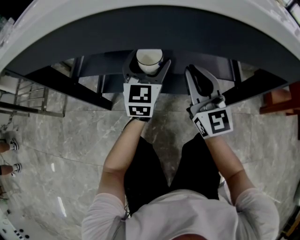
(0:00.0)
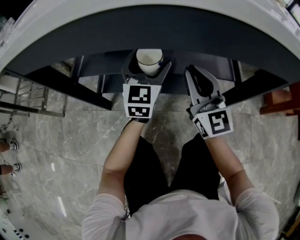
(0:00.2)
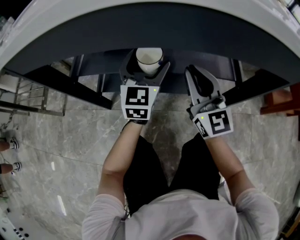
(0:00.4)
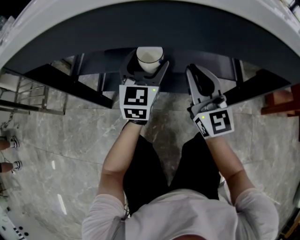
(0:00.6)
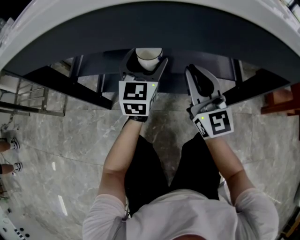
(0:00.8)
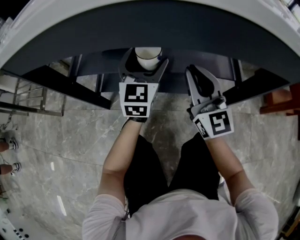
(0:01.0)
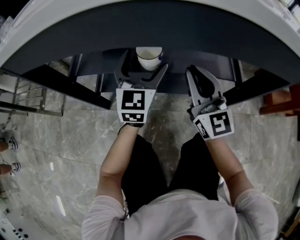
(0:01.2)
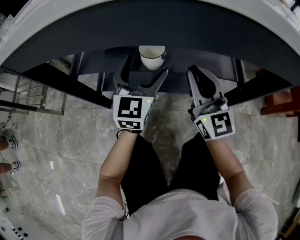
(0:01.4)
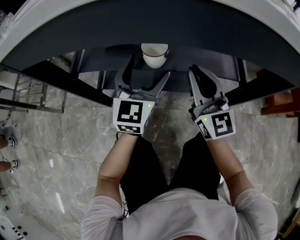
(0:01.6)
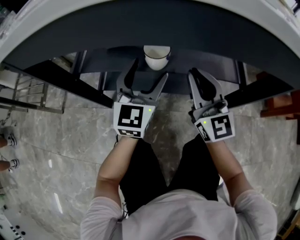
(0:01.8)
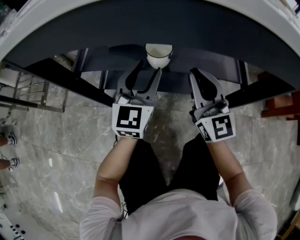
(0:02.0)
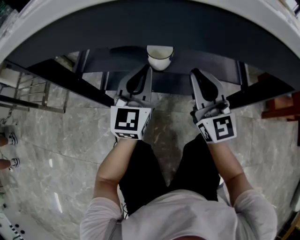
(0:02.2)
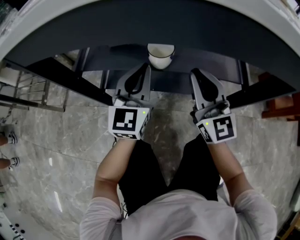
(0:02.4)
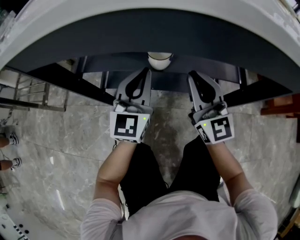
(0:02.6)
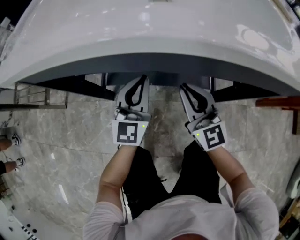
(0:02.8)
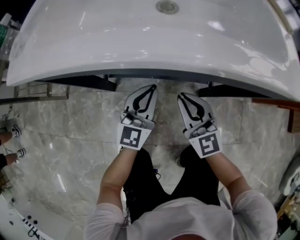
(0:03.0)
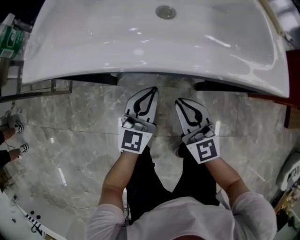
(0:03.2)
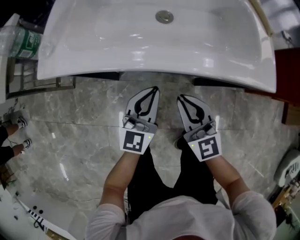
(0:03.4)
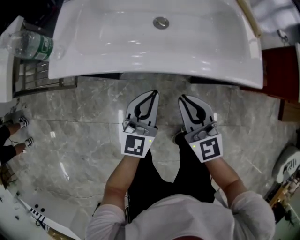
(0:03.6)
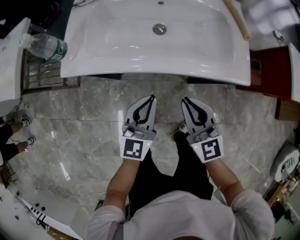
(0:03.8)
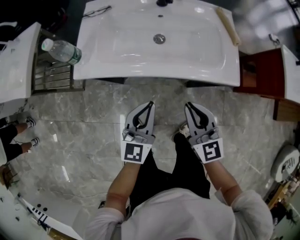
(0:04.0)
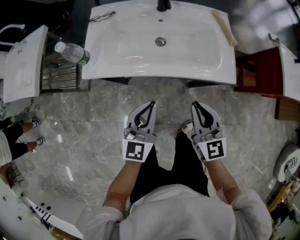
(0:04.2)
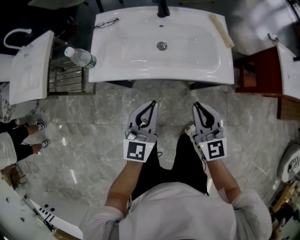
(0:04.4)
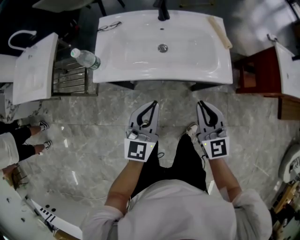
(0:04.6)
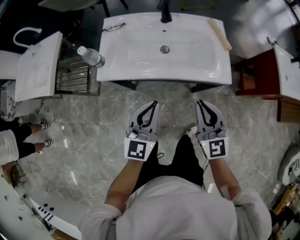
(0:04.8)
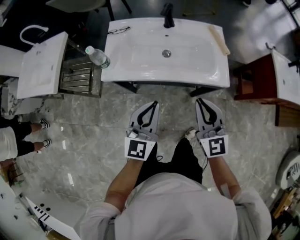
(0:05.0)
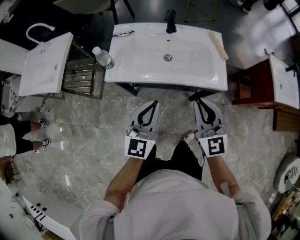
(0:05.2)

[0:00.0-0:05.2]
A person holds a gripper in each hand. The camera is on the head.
0:00.0 to 0:01.8: The left gripper moves backward, approximately 5 cm.
0:01.8 to 0:03.4: The two grippers go about 20 cm upward and backward. The left gripper closes up.
0:03.4 to 0:05.2: The two grippers go some 35 cm upward.

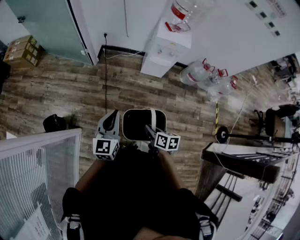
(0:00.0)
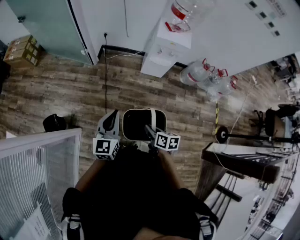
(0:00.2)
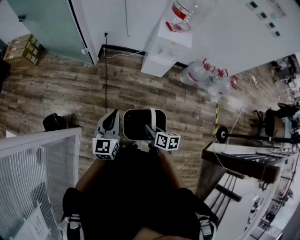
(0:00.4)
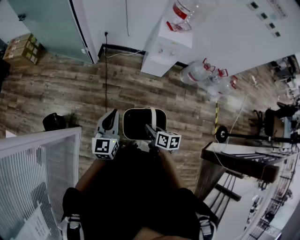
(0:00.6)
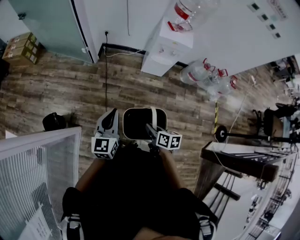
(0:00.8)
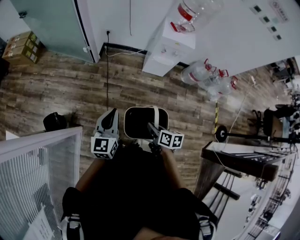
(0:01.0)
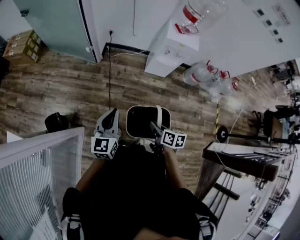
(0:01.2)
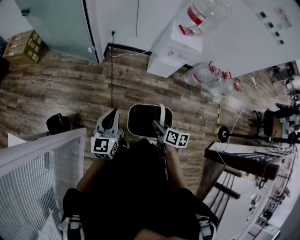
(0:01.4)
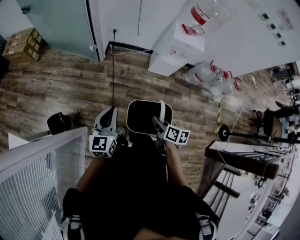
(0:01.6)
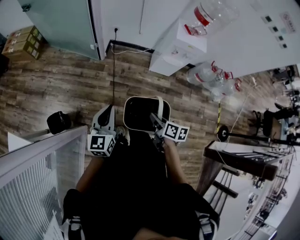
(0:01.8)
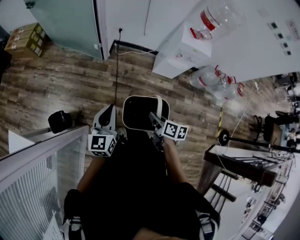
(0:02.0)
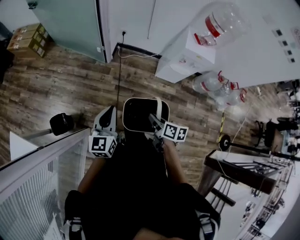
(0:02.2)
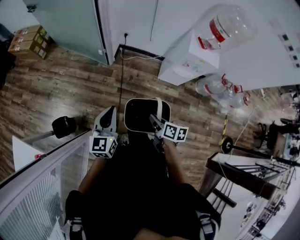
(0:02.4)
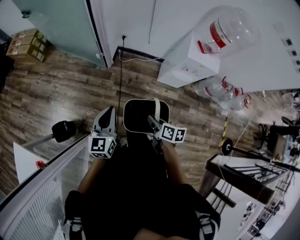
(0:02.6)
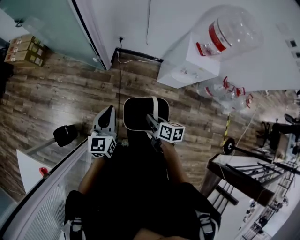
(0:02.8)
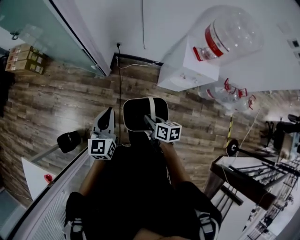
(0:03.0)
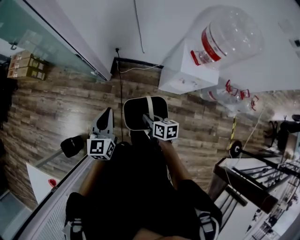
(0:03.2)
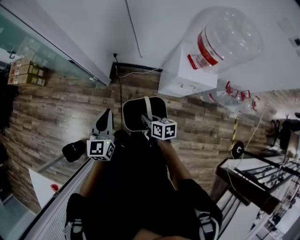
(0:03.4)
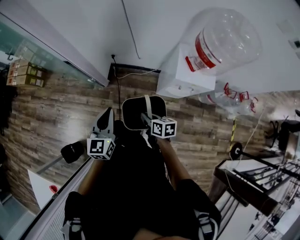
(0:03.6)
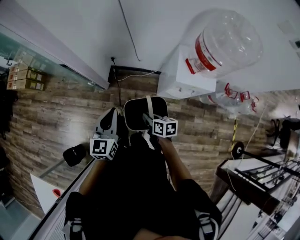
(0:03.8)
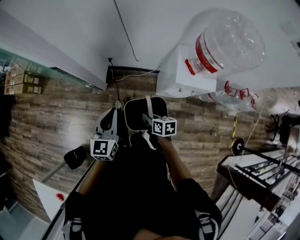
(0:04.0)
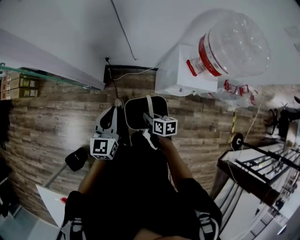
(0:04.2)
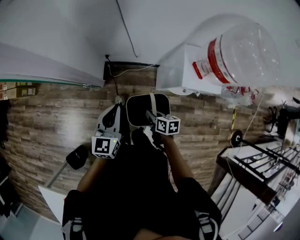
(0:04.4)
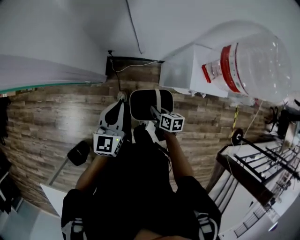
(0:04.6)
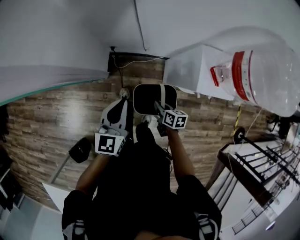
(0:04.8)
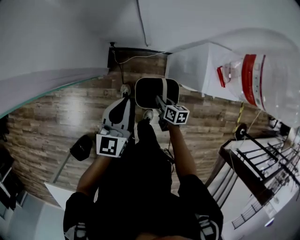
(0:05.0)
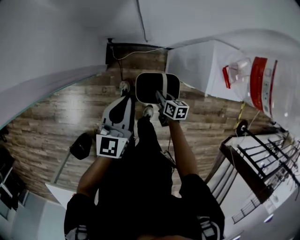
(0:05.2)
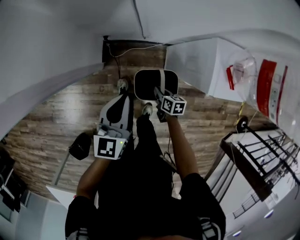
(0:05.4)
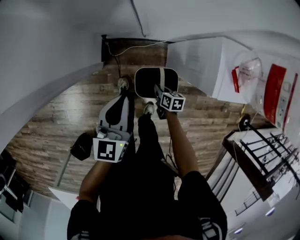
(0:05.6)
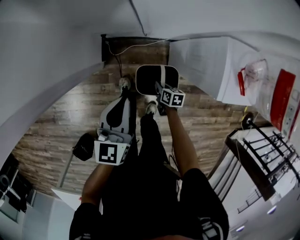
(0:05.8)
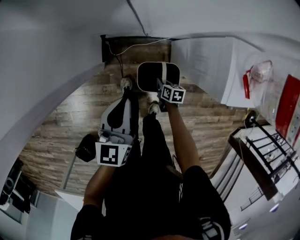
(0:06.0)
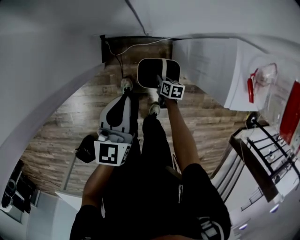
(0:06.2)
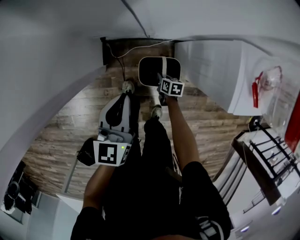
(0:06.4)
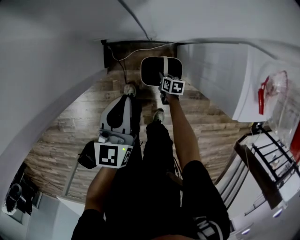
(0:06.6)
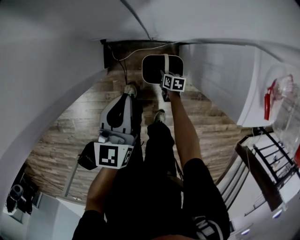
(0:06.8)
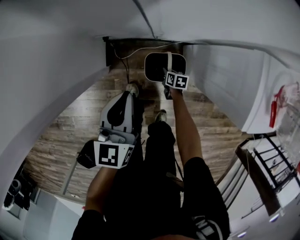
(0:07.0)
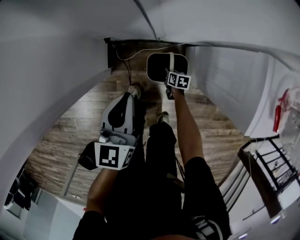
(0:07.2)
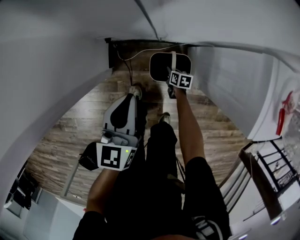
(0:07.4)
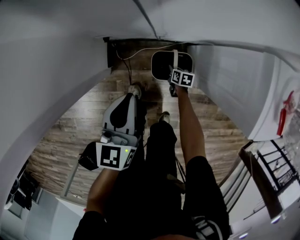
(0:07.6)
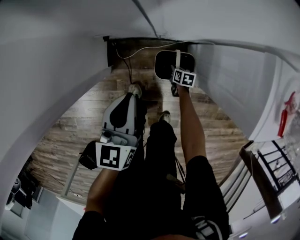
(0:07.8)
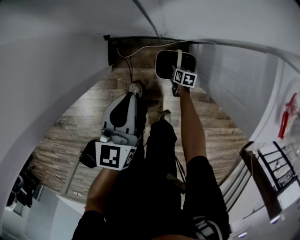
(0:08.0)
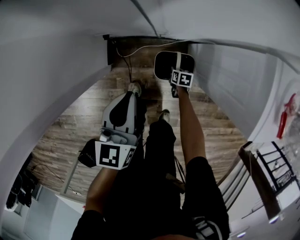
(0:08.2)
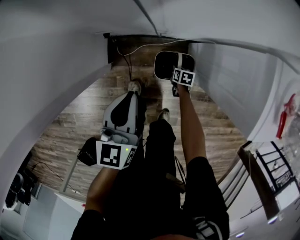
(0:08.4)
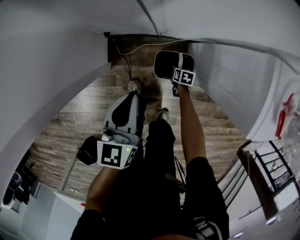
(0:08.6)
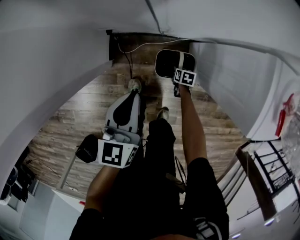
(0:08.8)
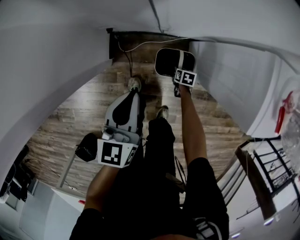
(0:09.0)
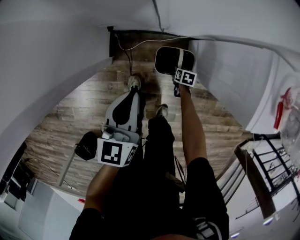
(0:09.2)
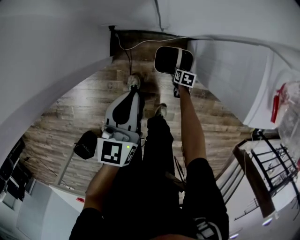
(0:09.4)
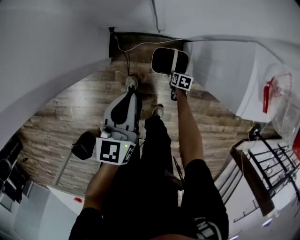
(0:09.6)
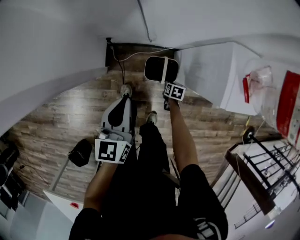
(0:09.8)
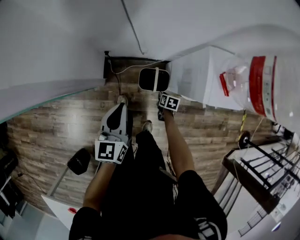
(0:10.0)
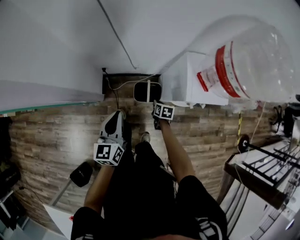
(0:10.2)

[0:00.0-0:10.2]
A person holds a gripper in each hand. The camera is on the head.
0:00.0 to 0:01.4: The right gripper heads to the left, covering about 5 cm, while the left gripper shifts roughly 10 cm to the left.
0:01.4 to 0:03.0: Both grippers travel together forward, some 30 cm.
0:03.0 to 0:04.4: The right gripper moves forward, to the right and downward, roughly 20 cm. The left gripper travels forward and to the right by about 25 cm.
0:04.4 to 0:05.8: The left gripper shifts roughly 20 cm forward and downward; the right gripper travels downward and forward by some 35 cm.
0:05.8 to 0:07.2: The left gripper travels downward and forward by some 15 cm; the right gripper is displaced downward and forward by some 25 cm.
0:07.2 to 0:08.8: The right gripper goes roughly 5 cm to the right.
0:08.8 to 0:10.2: The left gripper shifts some 25 cm upward and backward, while the right gripper is displaced upward by about 30 cm.

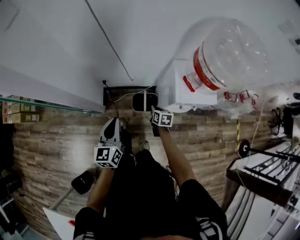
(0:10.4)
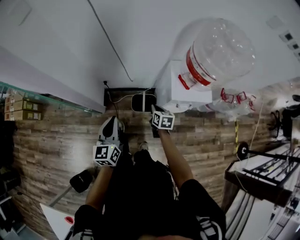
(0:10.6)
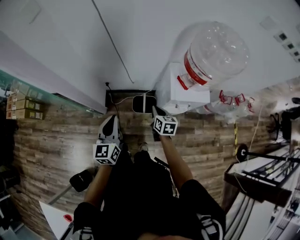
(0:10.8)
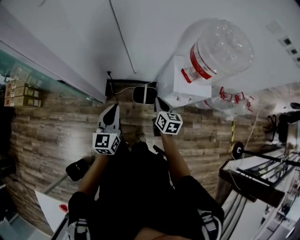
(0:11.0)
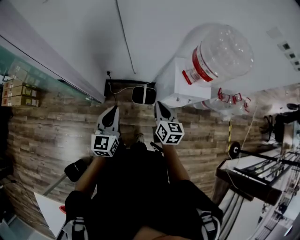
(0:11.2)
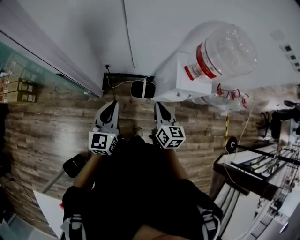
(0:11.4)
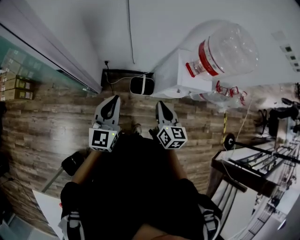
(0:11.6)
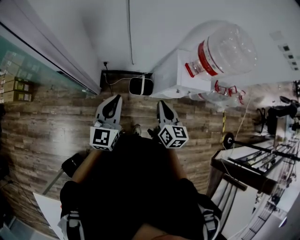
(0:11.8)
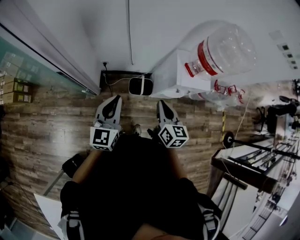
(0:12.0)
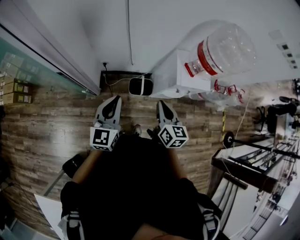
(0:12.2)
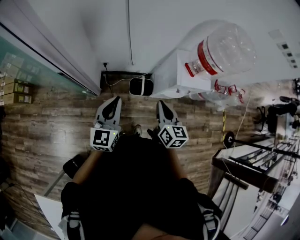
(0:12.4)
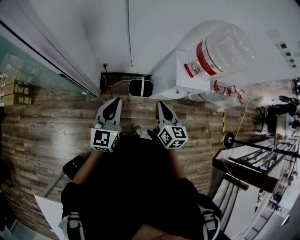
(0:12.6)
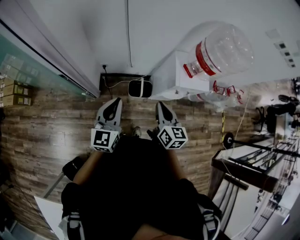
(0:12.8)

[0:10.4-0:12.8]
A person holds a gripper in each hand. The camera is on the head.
0:10.4 to 0:11.6: The left gripper moves upward, roughly 10 cm; the right gripper moves upward, some 30 cm, and swivels about 30 degrees.
0:11.6 to 0:12.8: The grippers stay close to where they were, moving slightly.

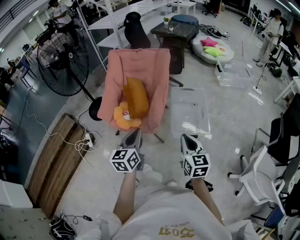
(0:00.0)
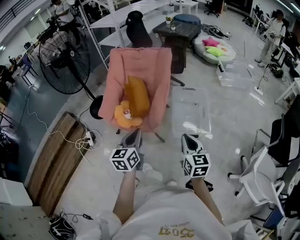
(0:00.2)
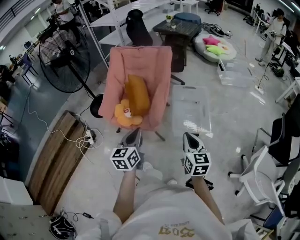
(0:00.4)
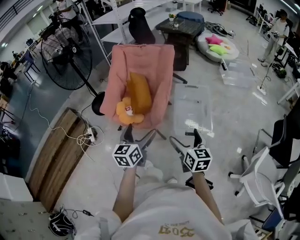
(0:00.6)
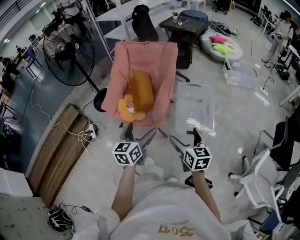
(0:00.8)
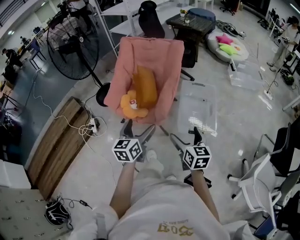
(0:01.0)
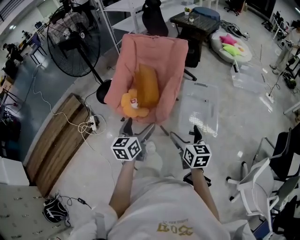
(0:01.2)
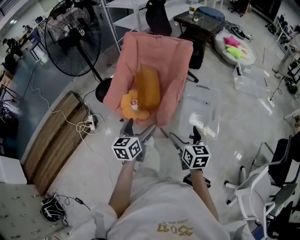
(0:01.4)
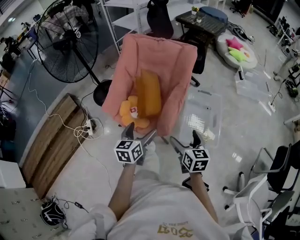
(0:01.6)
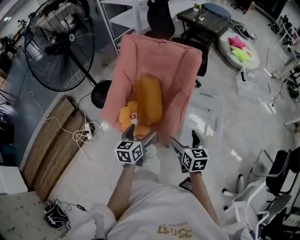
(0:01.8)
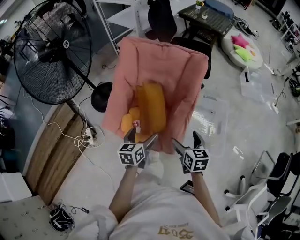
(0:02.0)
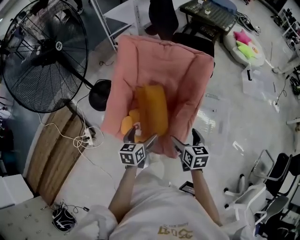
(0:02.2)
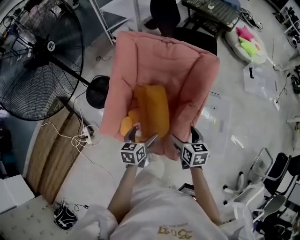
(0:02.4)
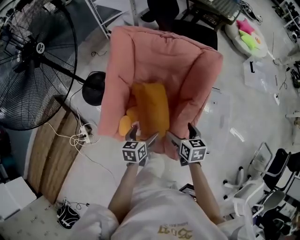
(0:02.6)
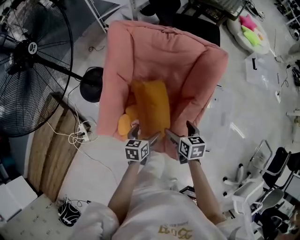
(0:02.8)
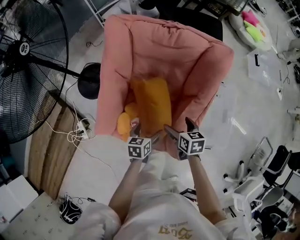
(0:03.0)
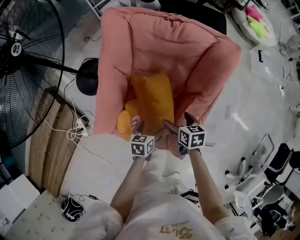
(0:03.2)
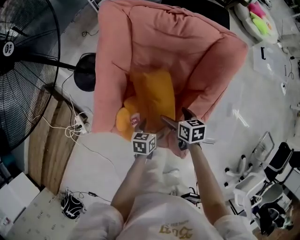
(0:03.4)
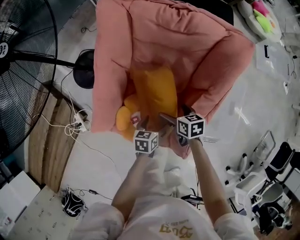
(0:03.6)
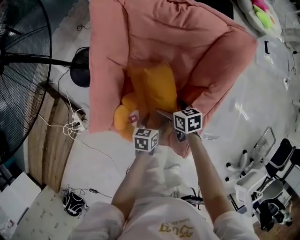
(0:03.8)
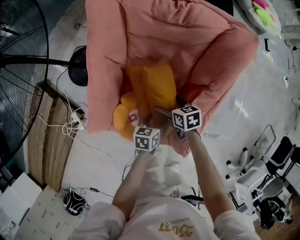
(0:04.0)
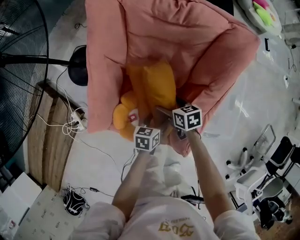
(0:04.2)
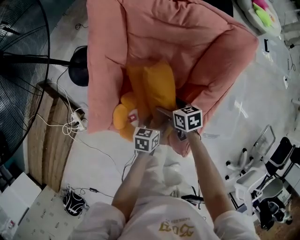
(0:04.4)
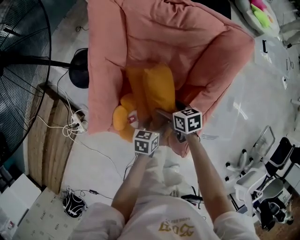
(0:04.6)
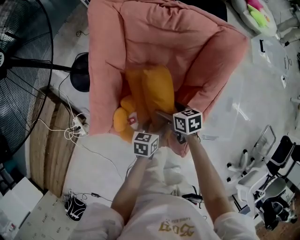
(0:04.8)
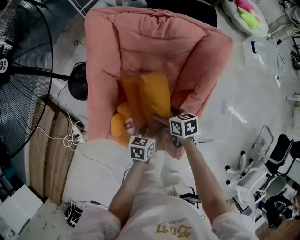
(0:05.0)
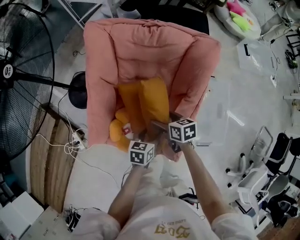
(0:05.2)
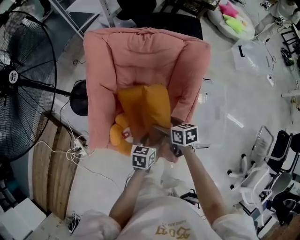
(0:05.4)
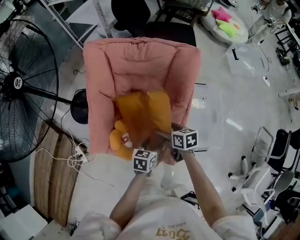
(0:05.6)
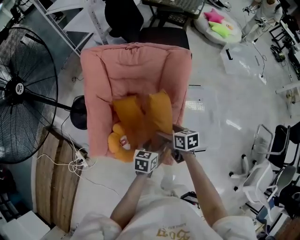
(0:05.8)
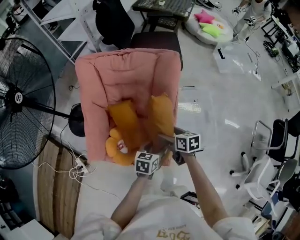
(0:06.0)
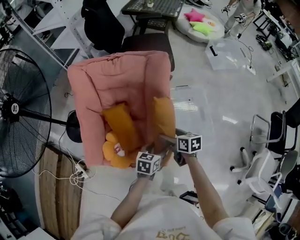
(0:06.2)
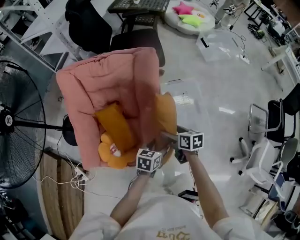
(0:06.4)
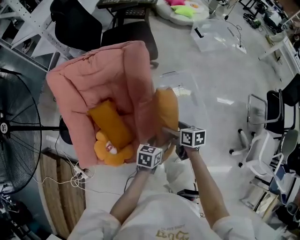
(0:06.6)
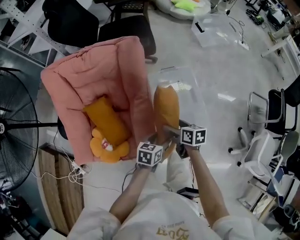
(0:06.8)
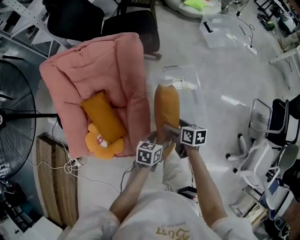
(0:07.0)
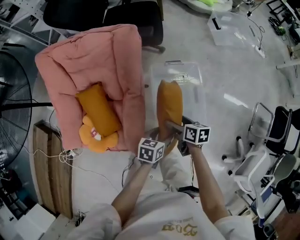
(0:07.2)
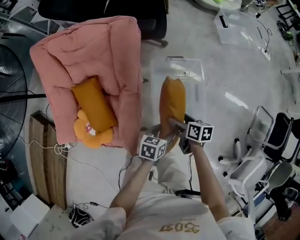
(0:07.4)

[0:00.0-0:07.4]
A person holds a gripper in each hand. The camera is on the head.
0:00.0 to 0:01.4: The right gripper is displaced forward, to the left and downward by roughly 15 cm, and opens. Meanwhile the left gripper heads forward and downward, covering some 10 cm, and opens up.
0:01.4 to 0:03.0: Both grippers travel together forward and downward, roughly 50 cm. The right gripper swivels approximately 30 degrees. Meanwhile the left gripper rotates approximately 30 degrees.
0:03.0 to 0:04.4: The right gripper shifts roughly 15 cm downward, forward and to the left, while the left gripper goes about 10 cm downward, and closes its fingers.
0:04.4 to 0:06.0: The grippers both shift upward, to the right and backward by some 20 cm. The right gripper turns by roughly 20 degrees.
0:06.0 to 0:07.4: The left gripper is displaced to the right by some 25 cm; the right gripper heads to the right and downward, covering roughly 30 cm.
